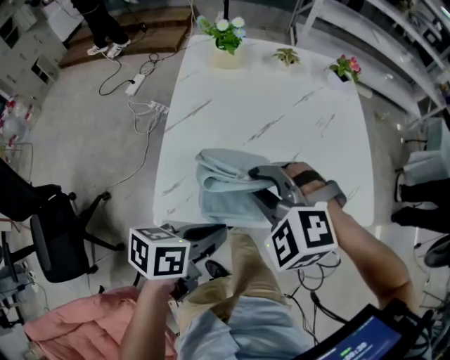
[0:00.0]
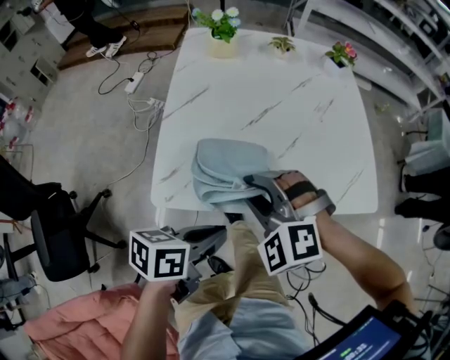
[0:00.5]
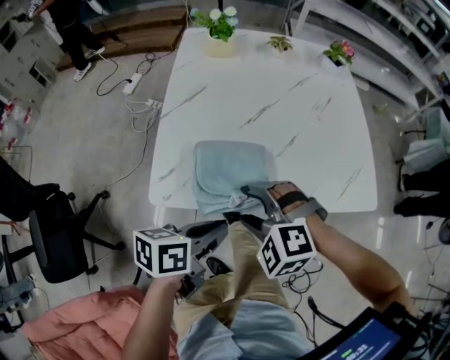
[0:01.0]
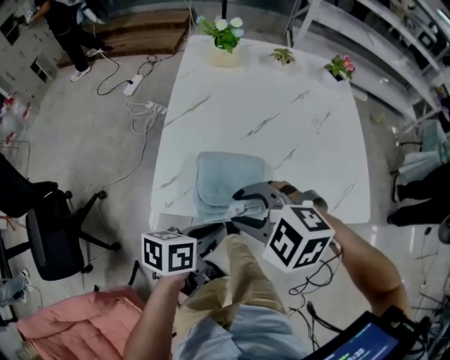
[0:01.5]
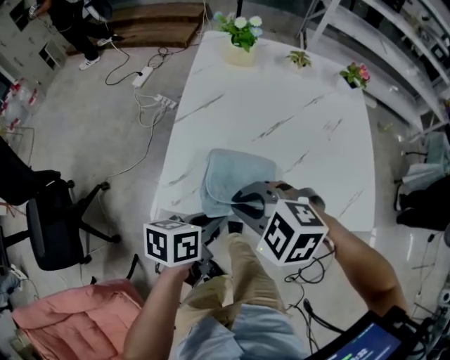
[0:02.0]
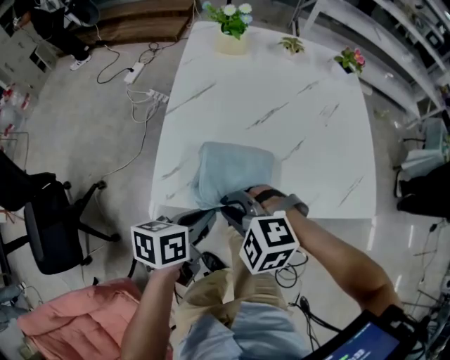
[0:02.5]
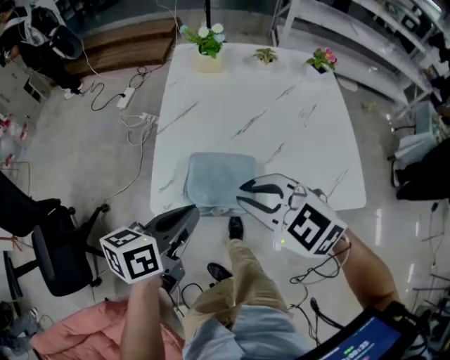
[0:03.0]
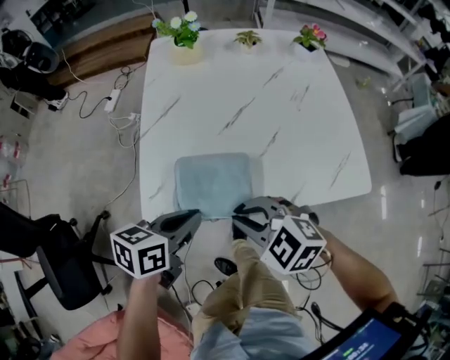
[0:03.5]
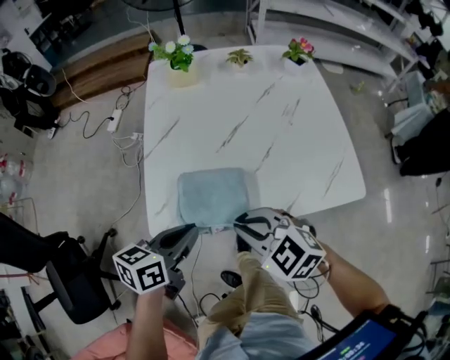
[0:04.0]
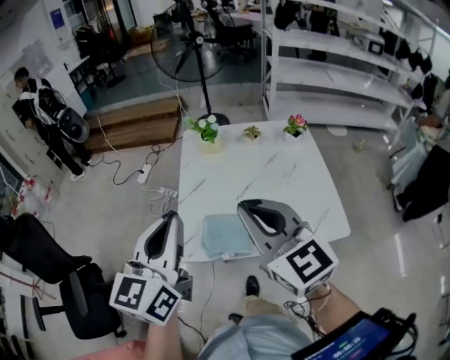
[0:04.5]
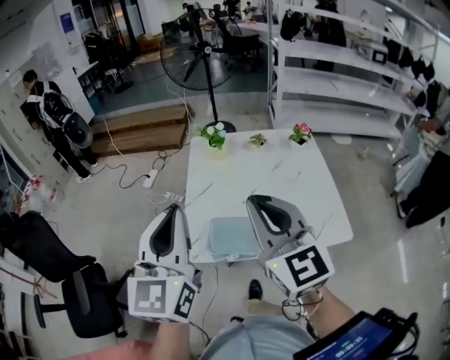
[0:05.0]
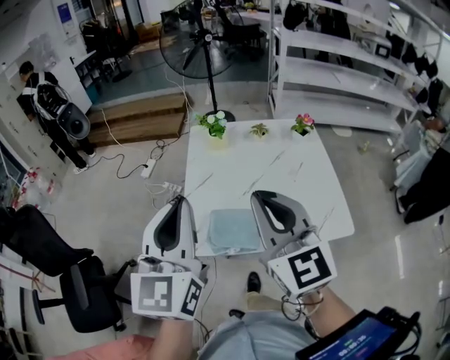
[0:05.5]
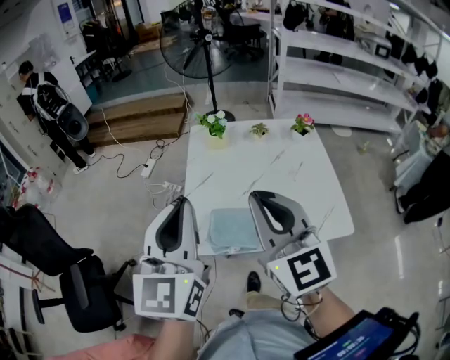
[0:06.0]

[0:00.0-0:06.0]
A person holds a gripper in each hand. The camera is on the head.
0:00.0 to 0:02.0: The left gripper travels downward by roughly 5 cm. Meanwhile the right gripper ends up approximately 10 cm from where it was, changes its angle by approximately 20 degrees, and opens, then closes once more.
0:02.0 to 0:04.0: The left gripper shifts approximately 5 cm upward; the right gripper moves up and down over some 10 cm, changing direction 2 times, and rotates about 30 degrees.
0:04.0 to 0:06.0: Both grippers travel together upward, about 30 cm. The left gripper points its fingers some 30 degrees further upward. The right gripper angles its fingers upward, by roughly 40 degrees.

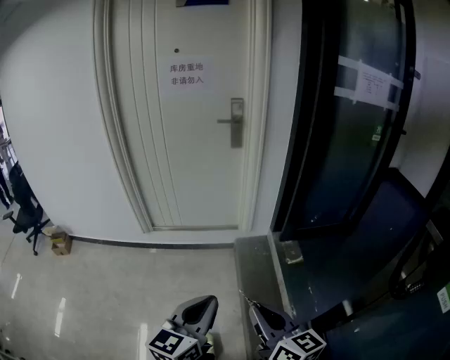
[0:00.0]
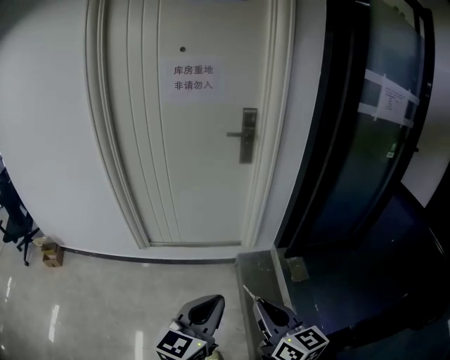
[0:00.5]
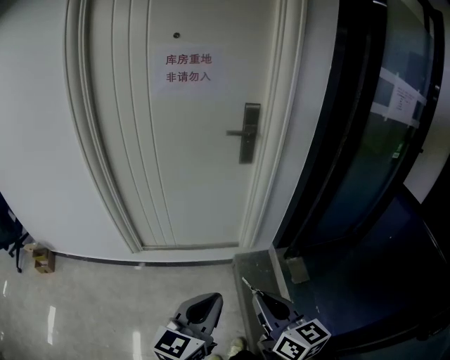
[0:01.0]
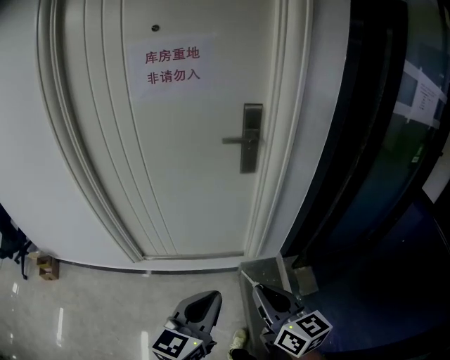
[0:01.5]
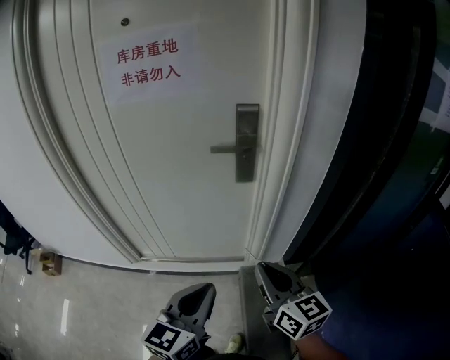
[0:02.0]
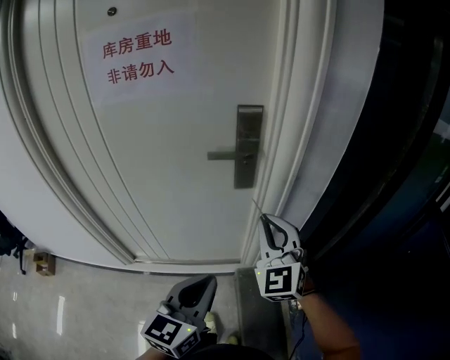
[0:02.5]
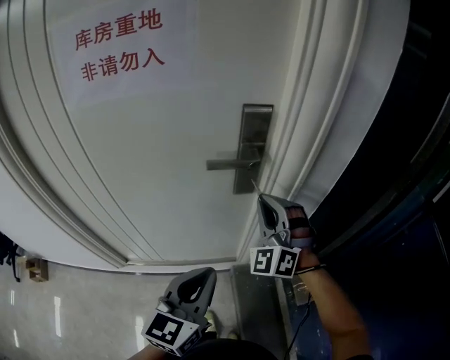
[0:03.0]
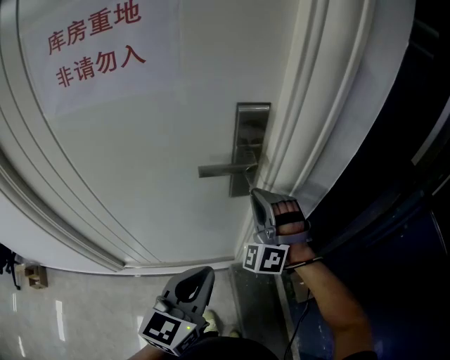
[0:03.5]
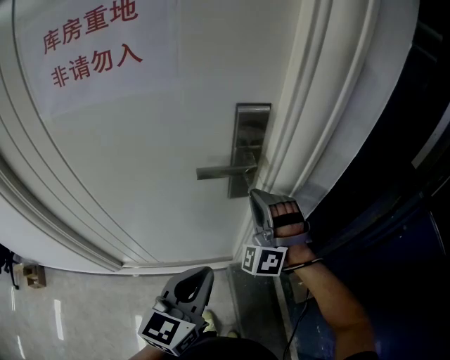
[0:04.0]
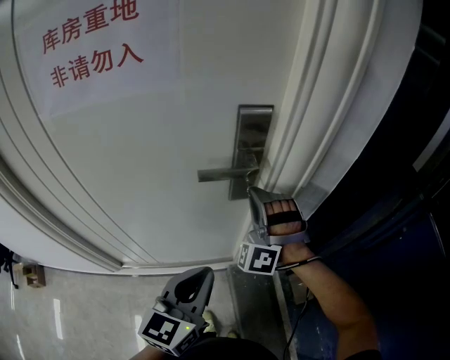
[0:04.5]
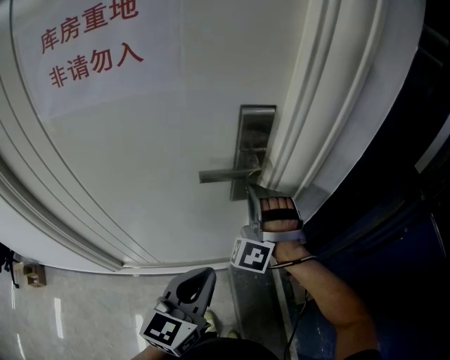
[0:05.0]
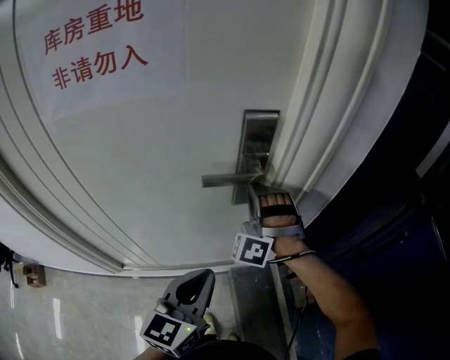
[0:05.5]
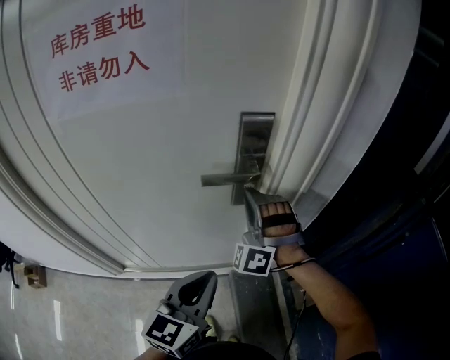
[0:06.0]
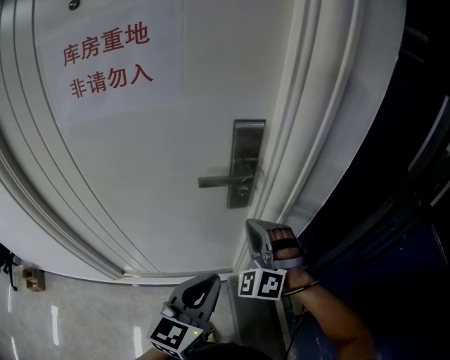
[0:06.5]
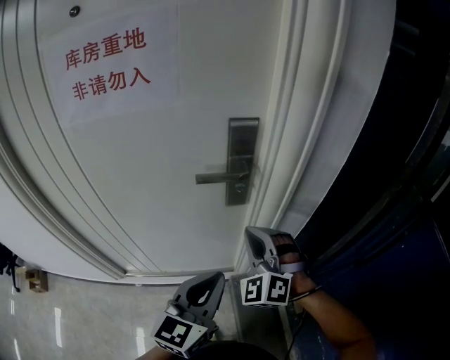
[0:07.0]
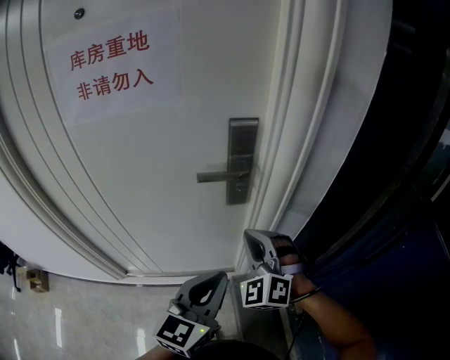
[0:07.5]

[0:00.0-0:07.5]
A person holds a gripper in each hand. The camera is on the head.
0:00.0 to 0:02.0: The pair of grippers is taken forward, some 50 cm.
0:02.0 to 0:04.0: The left gripper goes approximately 20 cm forward. Meanwhile the right gripper travels forward by about 30 cm, and twists roughly 90 degrees counterclockwise, seen from behind.
0:04.0 to 0:05.5: The right gripper shifts by some 5 cm.
0:05.5 to 0:07.5: The left gripper moves to the right, roughly 5 cm, while the right gripper heads backward, covering roughly 15 cm, and changes its angle by approximately 30 degrees.

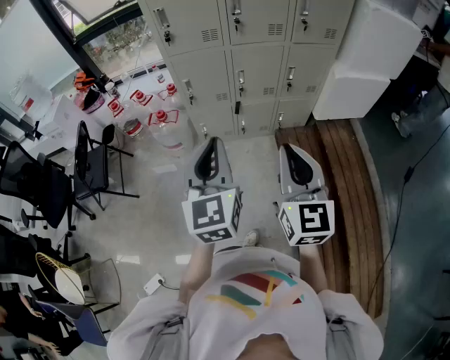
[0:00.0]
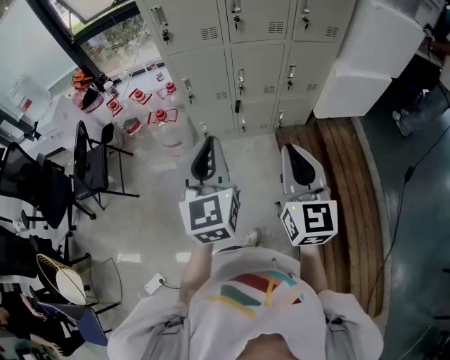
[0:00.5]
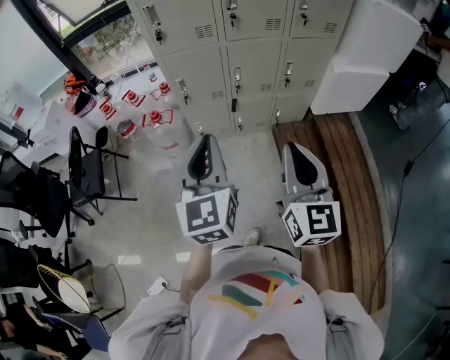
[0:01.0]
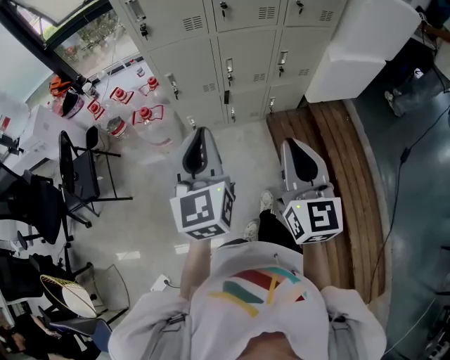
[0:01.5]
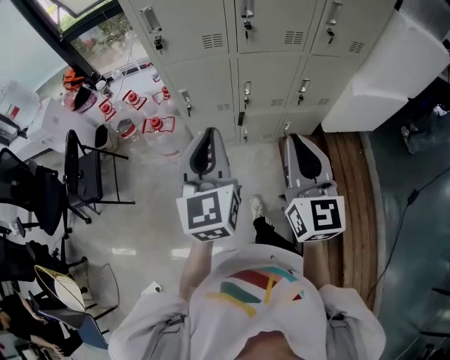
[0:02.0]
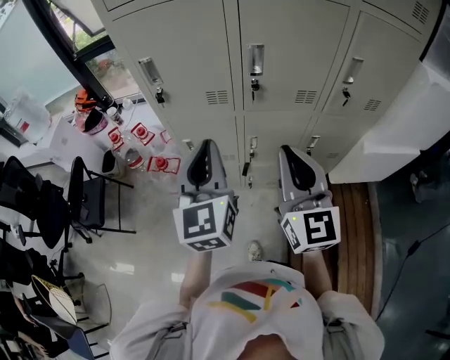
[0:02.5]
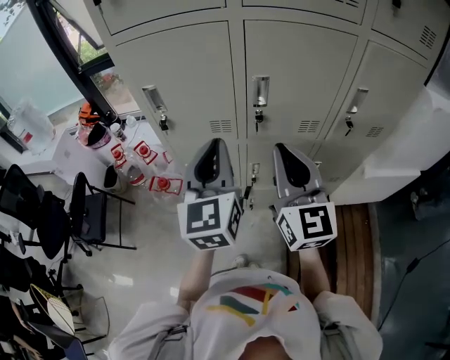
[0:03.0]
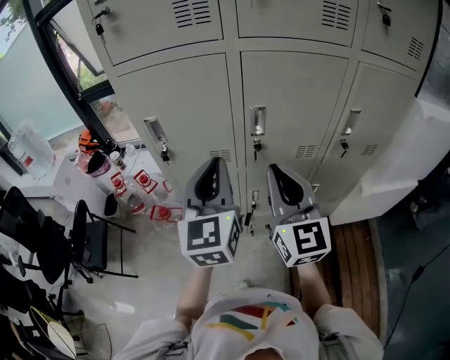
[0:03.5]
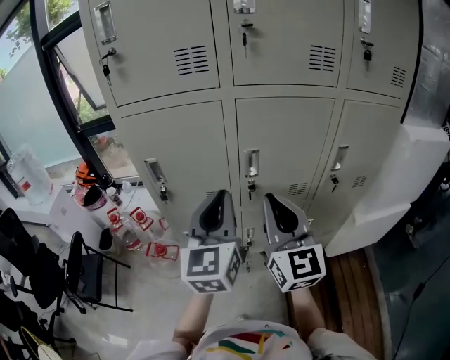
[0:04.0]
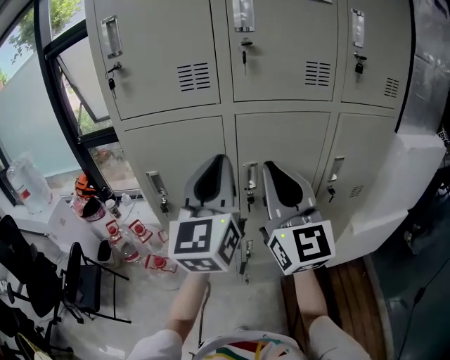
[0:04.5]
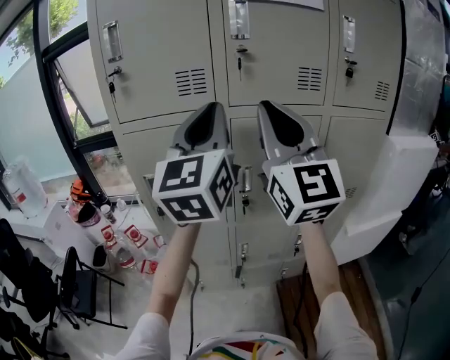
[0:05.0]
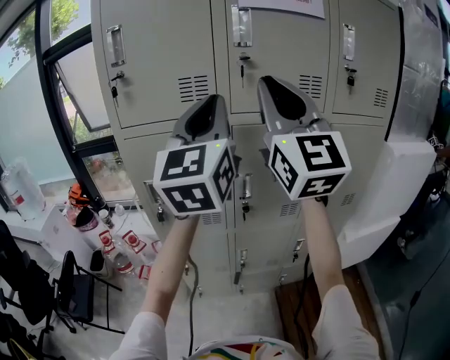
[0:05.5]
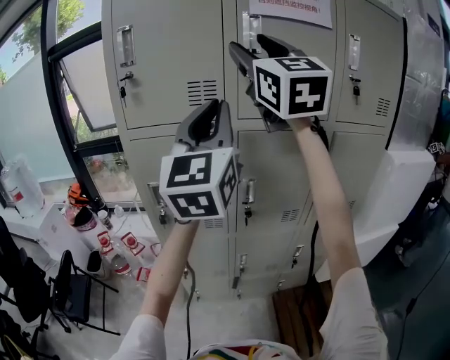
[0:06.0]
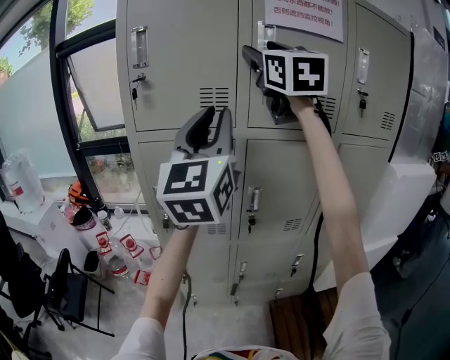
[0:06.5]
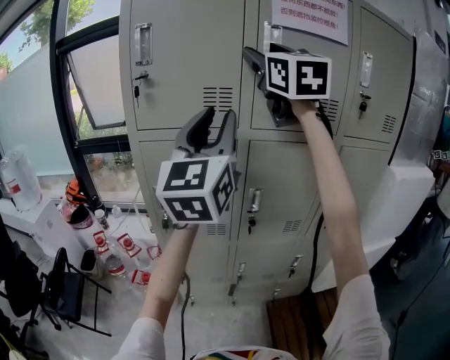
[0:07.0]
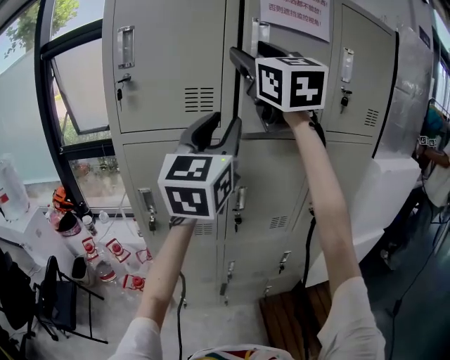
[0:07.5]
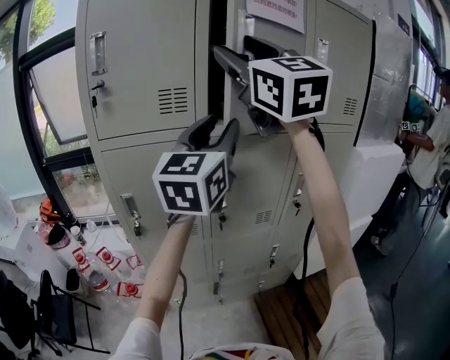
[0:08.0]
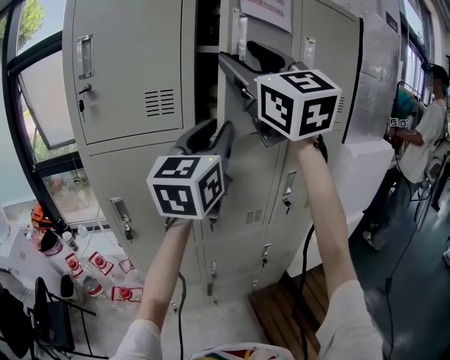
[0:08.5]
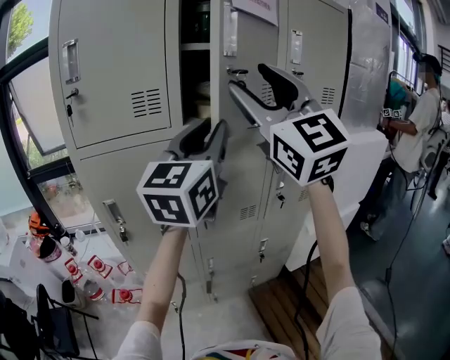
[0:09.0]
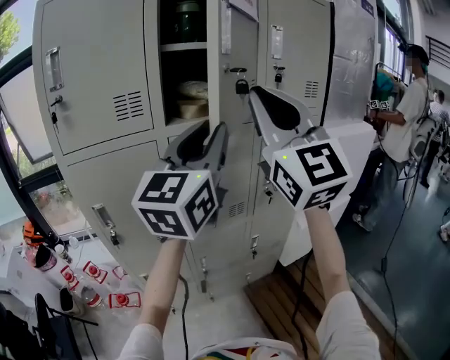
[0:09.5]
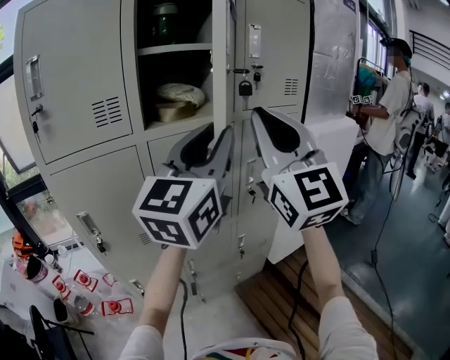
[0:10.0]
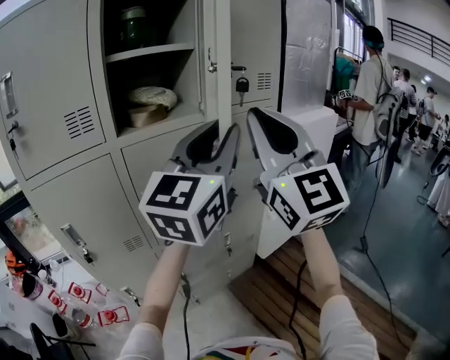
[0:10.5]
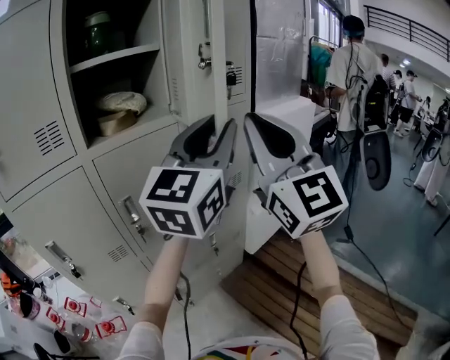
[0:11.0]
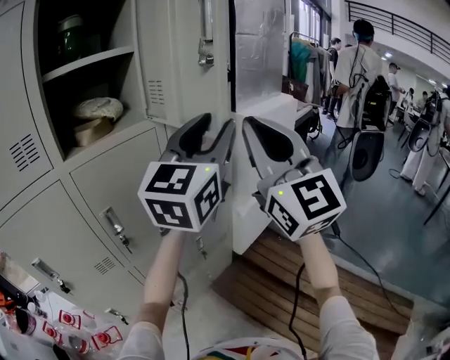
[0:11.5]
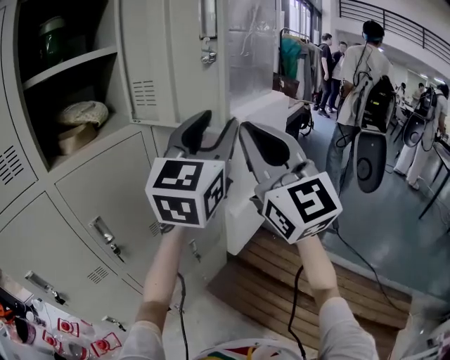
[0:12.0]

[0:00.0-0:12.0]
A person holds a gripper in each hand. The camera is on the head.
0:00.0 to 0:02.0: The grippers both shift forward by approximately 20 cm.
0:02.0 to 0:04.0: The two grippers go roughly 25 cm forward and upward.
0:04.0 to 0:06.0: The right gripper heads upward, covering some 35 cm, turns by roughly 20 degrees, and opens up. The left gripper heads upward, covering about 25 cm, and turns by approximately 20 degrees.
0:06.0 to 0:08.0: The right gripper moves some 5 cm forward and comes back, while the left gripper travels to the right by approximately 5 cm, turns by roughly 20 degrees, and opens its fingers.
0:08.0 to 0:10.0: The left gripper heads to the right and backward, covering about 15 cm. The right gripper is displaced to the right, downward and backward by about 25 cm, turns by approximately 20 degrees, and closes.
0:10.0 to 0:12.0: The right gripper is displaced to the right by approximately 15 cm. The left gripper moves to the right and forward, roughly 20 cm.

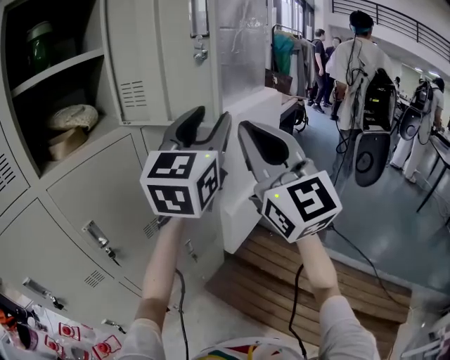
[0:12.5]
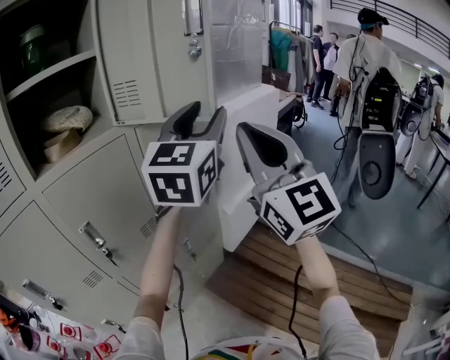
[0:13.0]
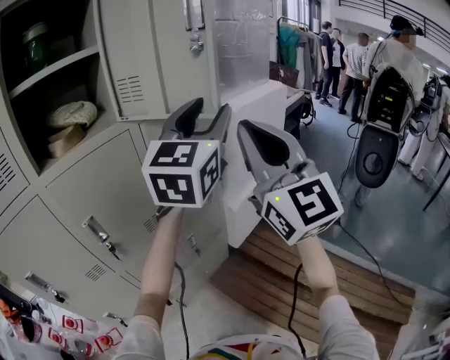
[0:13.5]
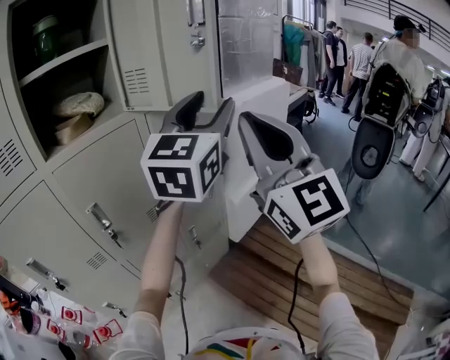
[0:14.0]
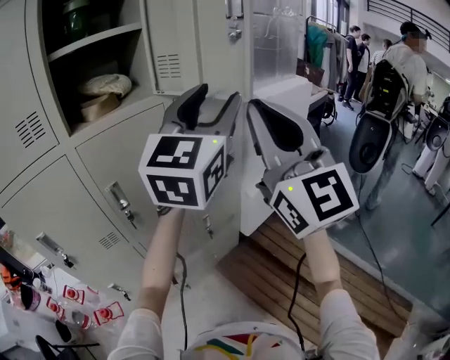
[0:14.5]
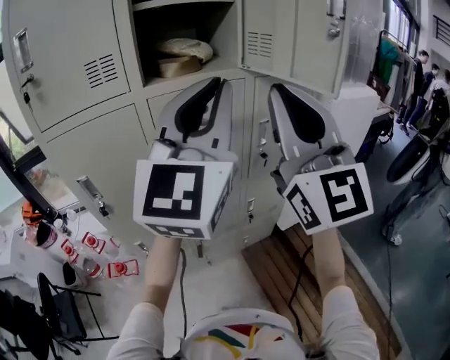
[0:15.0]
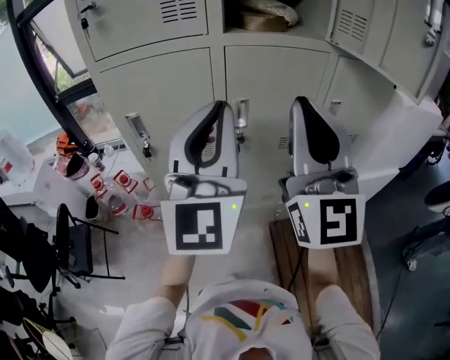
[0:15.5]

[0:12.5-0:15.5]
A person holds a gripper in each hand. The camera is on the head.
0:12.5 to 0:14.0: The grippers move only a little.
0:14.0 to 0:15.5: The right gripper moves approximately 25 cm, and turns by roughly 20 degrees; the left gripper changes place by roughly 35 cm, turns by some 50 degrees, and closes up.
